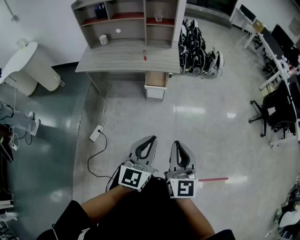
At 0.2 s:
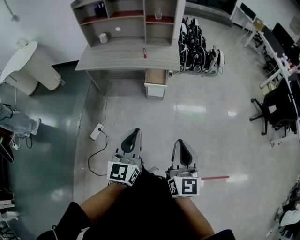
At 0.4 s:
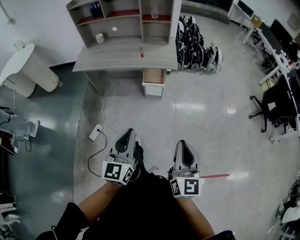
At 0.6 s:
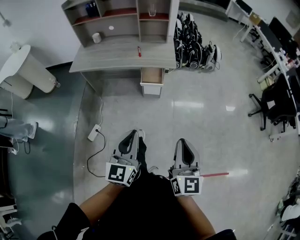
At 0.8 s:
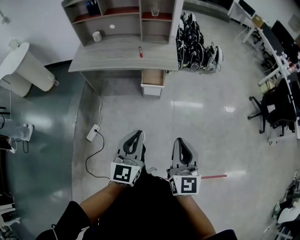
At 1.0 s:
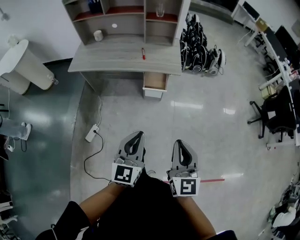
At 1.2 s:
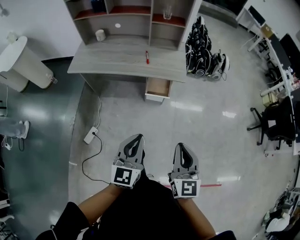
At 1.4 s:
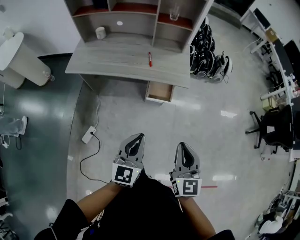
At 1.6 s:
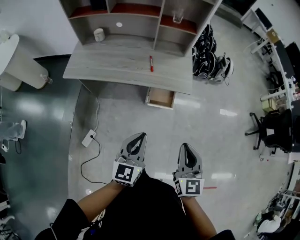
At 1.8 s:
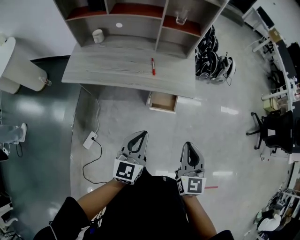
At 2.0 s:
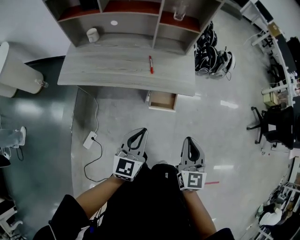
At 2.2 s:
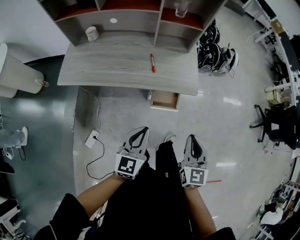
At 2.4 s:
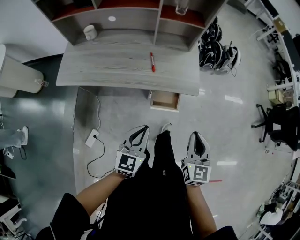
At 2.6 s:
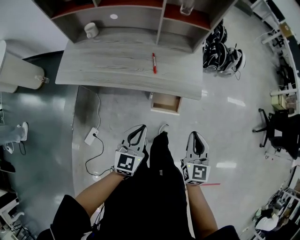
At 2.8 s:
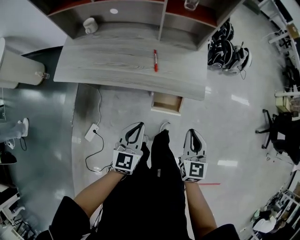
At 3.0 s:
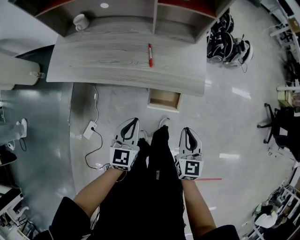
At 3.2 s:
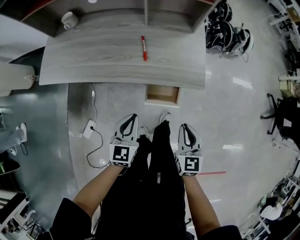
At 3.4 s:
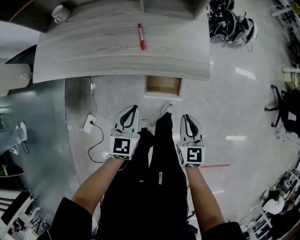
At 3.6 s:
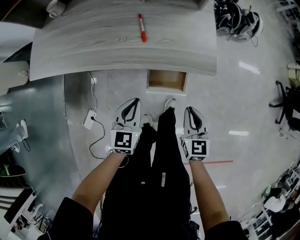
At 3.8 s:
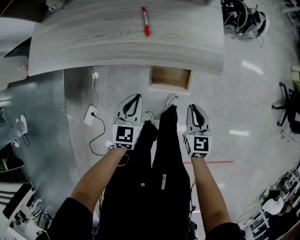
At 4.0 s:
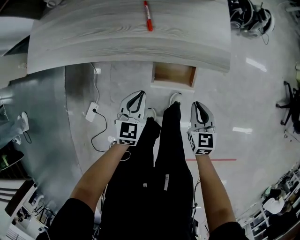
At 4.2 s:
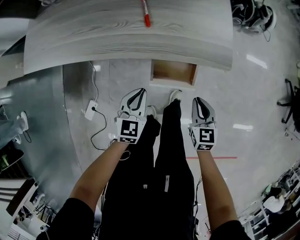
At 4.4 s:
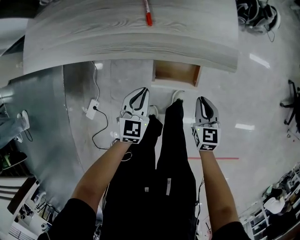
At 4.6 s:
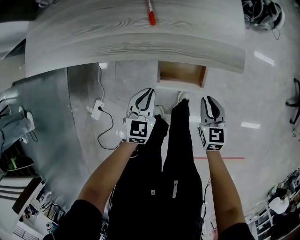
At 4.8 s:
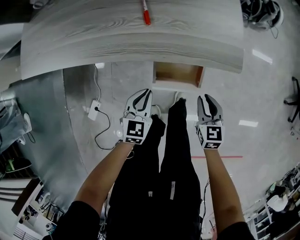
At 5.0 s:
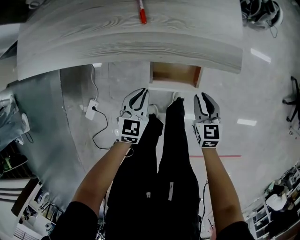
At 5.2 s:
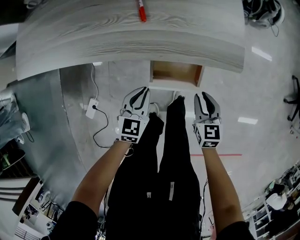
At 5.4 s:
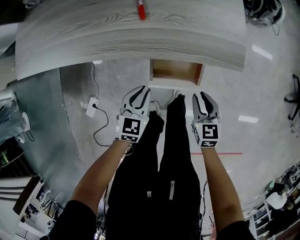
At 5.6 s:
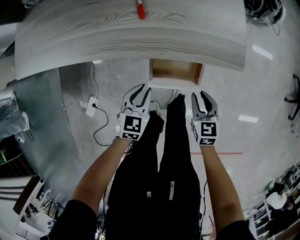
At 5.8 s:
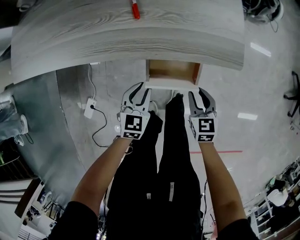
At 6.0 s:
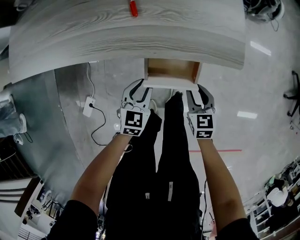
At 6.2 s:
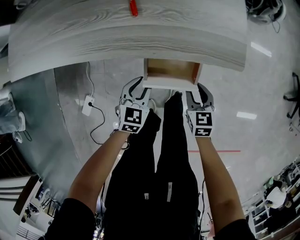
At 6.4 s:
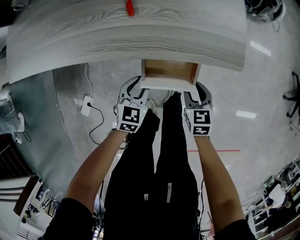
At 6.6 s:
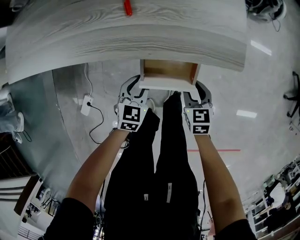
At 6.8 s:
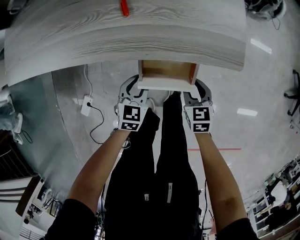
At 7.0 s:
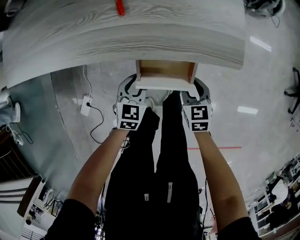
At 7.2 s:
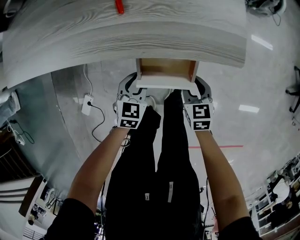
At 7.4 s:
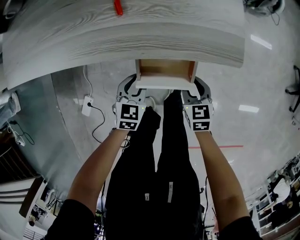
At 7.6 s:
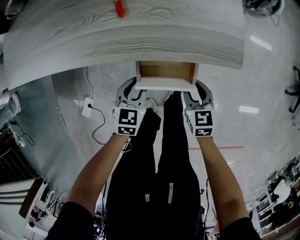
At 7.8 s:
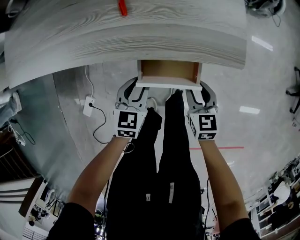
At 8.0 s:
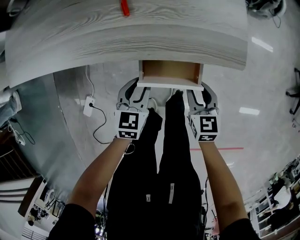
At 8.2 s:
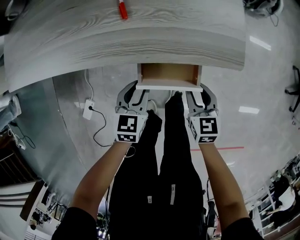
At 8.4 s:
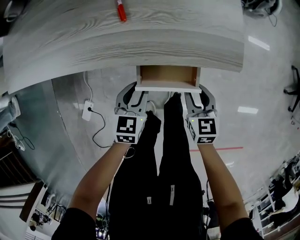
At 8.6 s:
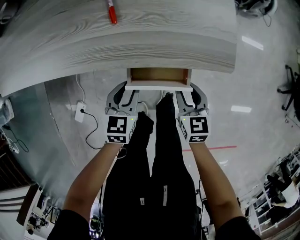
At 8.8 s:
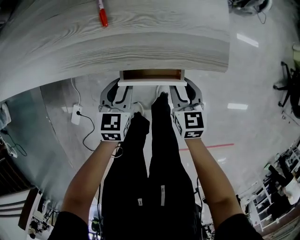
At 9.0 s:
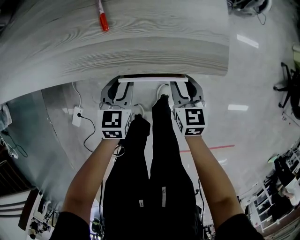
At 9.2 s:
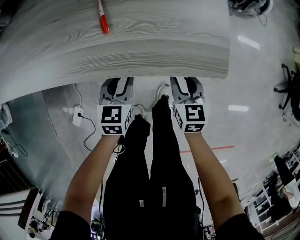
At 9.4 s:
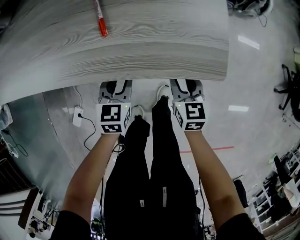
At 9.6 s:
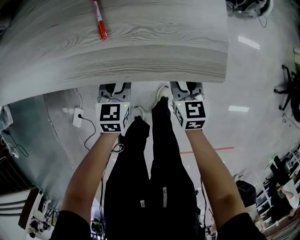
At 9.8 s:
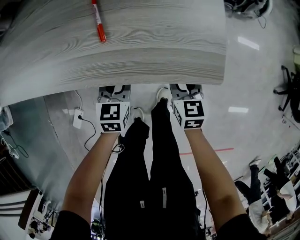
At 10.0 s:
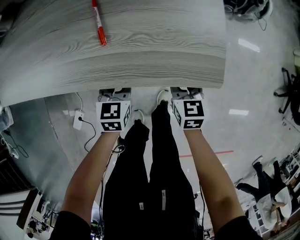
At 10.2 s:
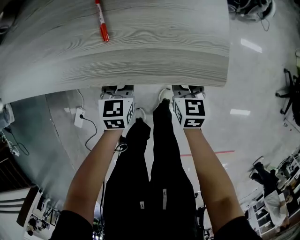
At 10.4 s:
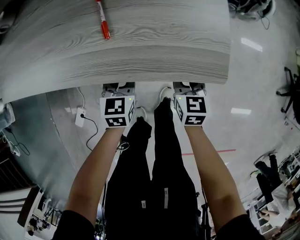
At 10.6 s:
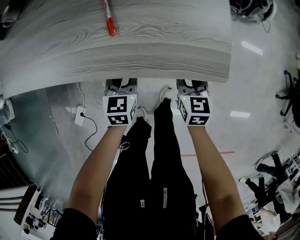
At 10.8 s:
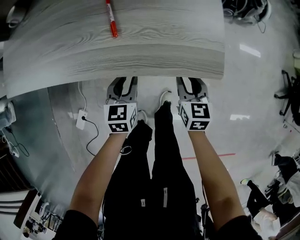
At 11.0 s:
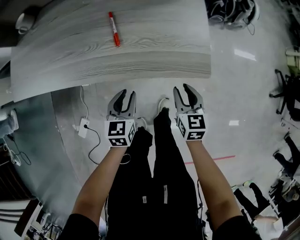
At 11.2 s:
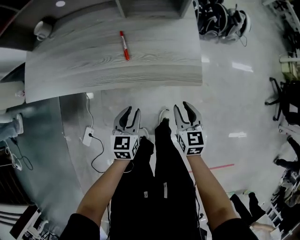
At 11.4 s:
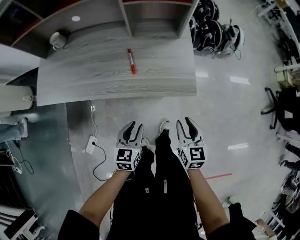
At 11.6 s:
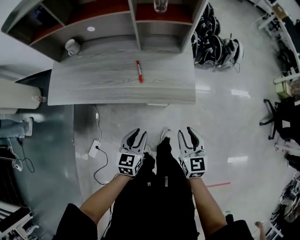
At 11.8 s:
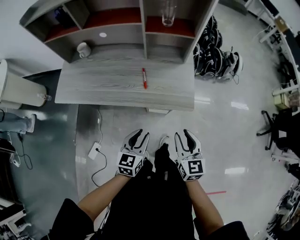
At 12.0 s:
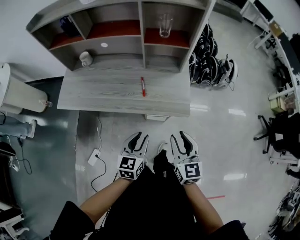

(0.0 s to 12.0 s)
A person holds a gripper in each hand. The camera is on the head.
0.0 s - 1.6 s: The left gripper heads forward and to the left, covering about 30 cm; the right gripper shifts roughly 30 cm forward.
1.6 s - 3.0 s: The right gripper is displaced downward and forward by some 25 cm. Meanwhile the left gripper shifts some 25 cm forward and downward.
3.0 s - 4.4 s: Both grippers move downward, roughly 25 cm.
4.4 s - 6.0 s: The grippers both shift downward by some 10 cm. The right gripper opens up, while the left gripper opens its fingers.
6.0 s - 7.6 s: The grippers make only small movements.
7.6 s - 9.0 s: Both grippers move forward, roughly 5 cm.
9.0 s - 10.4 s: Both grippers travel together forward, approximately 5 cm.
10.4 s - 12.0 s: The left gripper travels upward and backward by roughly 40 cm. Meanwhile the right gripper is displaced upward by approximately 40 cm, and rotates some 20 degrees.

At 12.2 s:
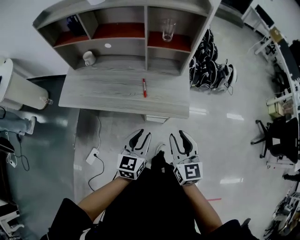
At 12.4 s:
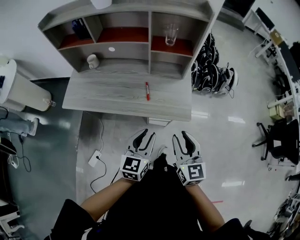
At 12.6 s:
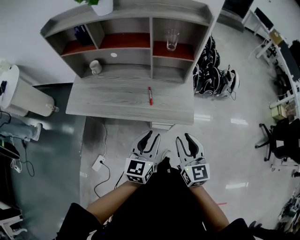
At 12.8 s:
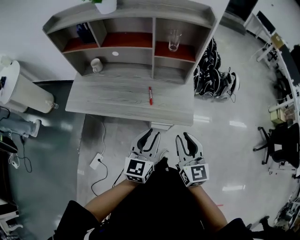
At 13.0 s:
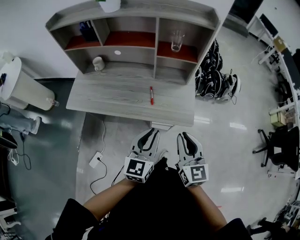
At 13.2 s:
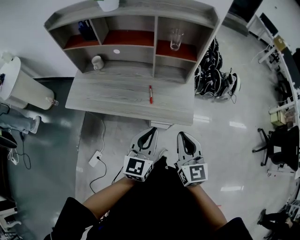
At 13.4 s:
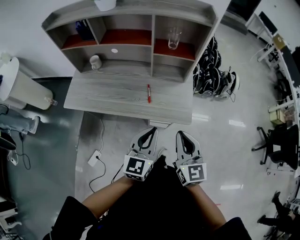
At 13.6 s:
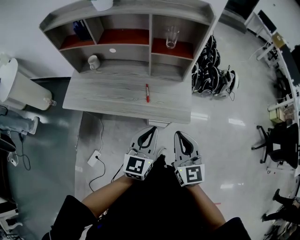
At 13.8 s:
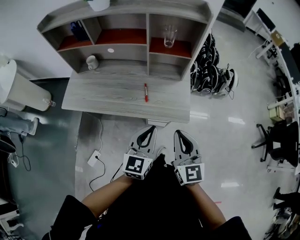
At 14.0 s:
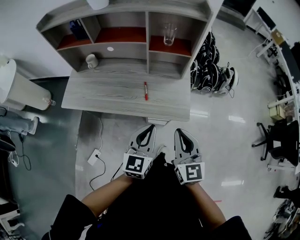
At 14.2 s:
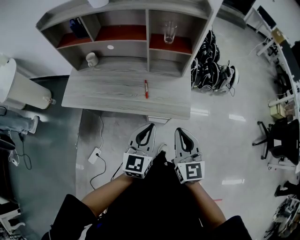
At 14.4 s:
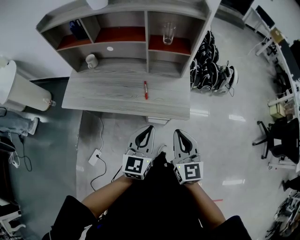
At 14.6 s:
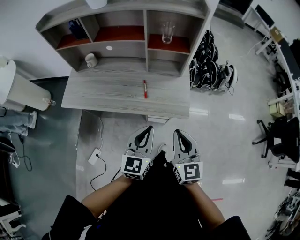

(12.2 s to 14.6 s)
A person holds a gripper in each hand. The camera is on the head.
12.2 s - 13.4 s: The left gripper is displaced upward by about 10 cm, and closes; the right gripper moves upward, roughly 5 cm, and closes up.
13.4 s - 14.6 s: There are only small adjustments of the grippers.

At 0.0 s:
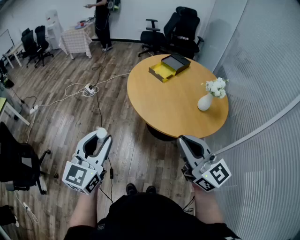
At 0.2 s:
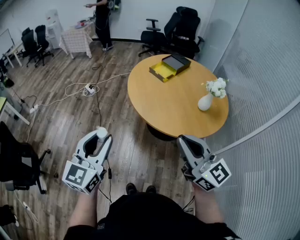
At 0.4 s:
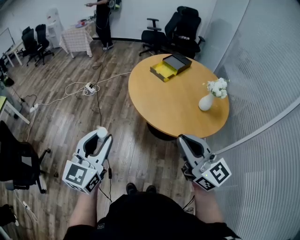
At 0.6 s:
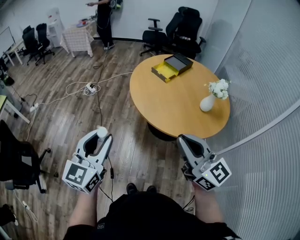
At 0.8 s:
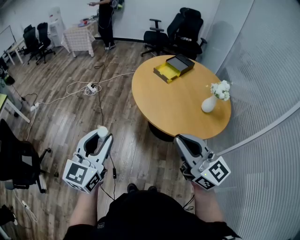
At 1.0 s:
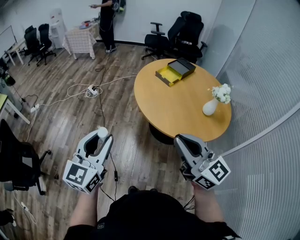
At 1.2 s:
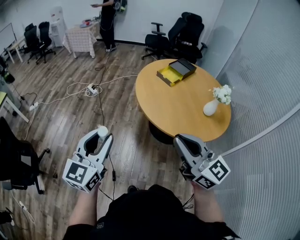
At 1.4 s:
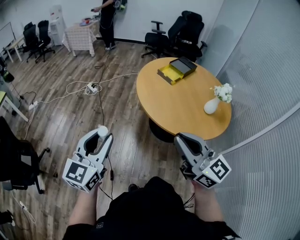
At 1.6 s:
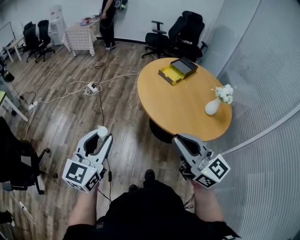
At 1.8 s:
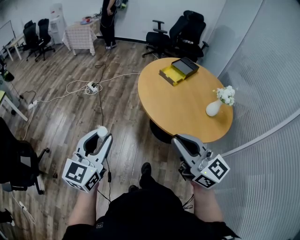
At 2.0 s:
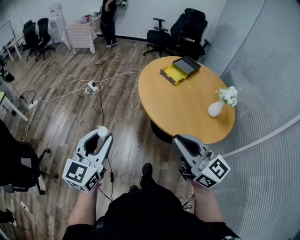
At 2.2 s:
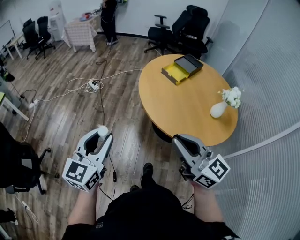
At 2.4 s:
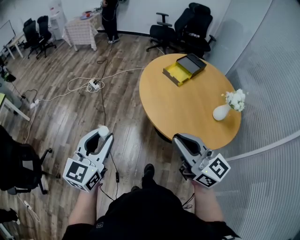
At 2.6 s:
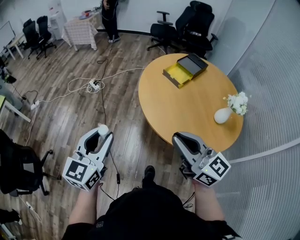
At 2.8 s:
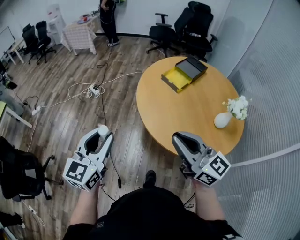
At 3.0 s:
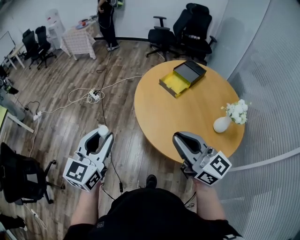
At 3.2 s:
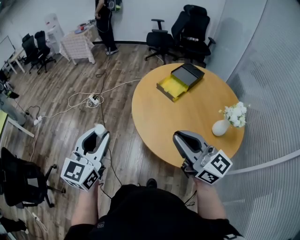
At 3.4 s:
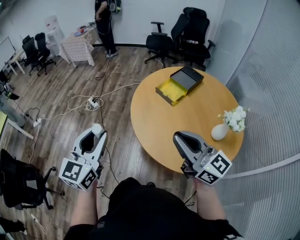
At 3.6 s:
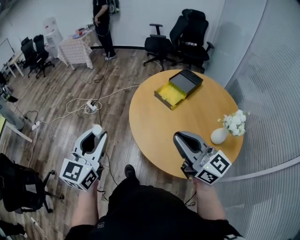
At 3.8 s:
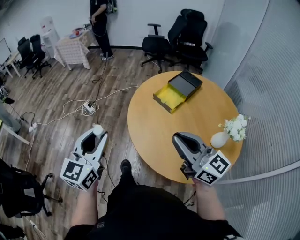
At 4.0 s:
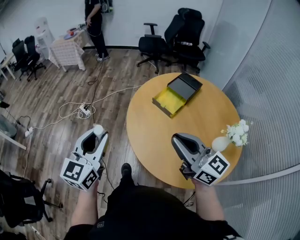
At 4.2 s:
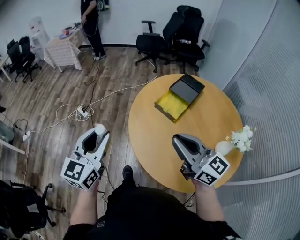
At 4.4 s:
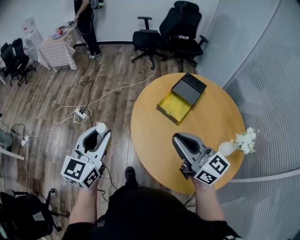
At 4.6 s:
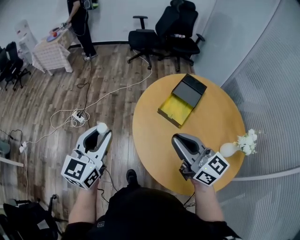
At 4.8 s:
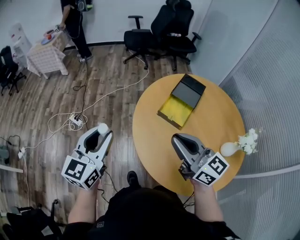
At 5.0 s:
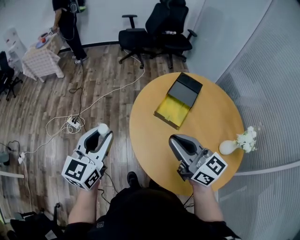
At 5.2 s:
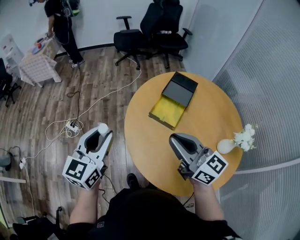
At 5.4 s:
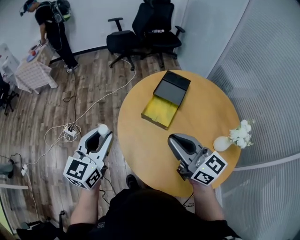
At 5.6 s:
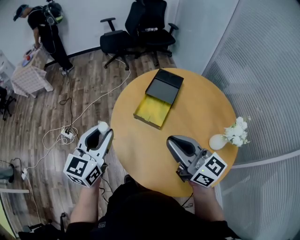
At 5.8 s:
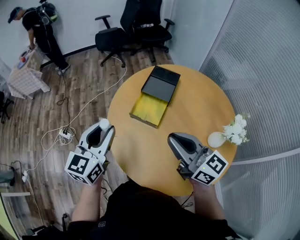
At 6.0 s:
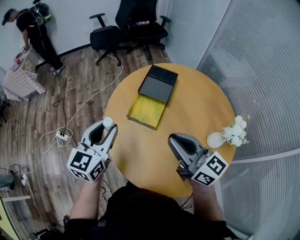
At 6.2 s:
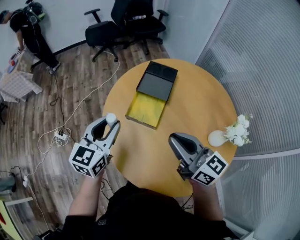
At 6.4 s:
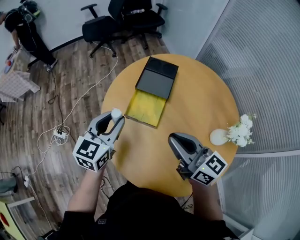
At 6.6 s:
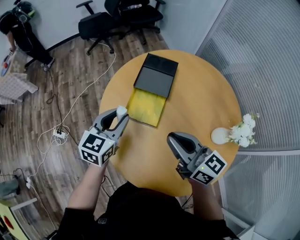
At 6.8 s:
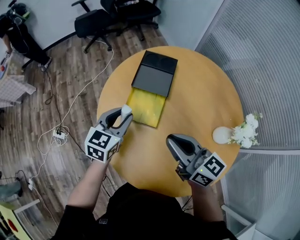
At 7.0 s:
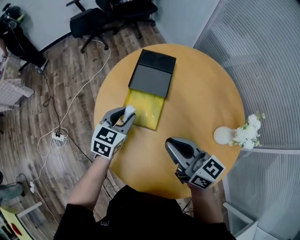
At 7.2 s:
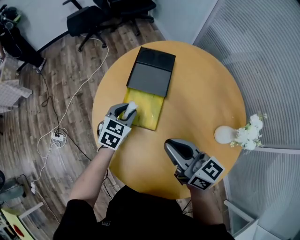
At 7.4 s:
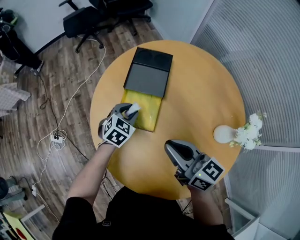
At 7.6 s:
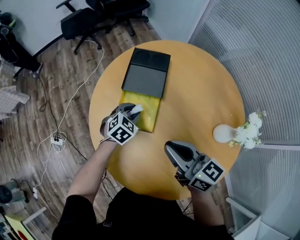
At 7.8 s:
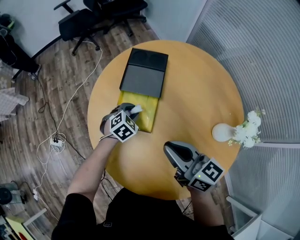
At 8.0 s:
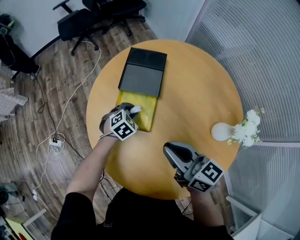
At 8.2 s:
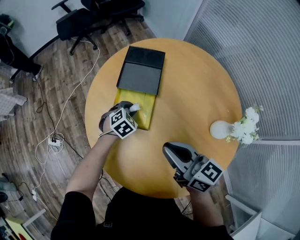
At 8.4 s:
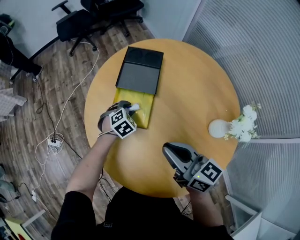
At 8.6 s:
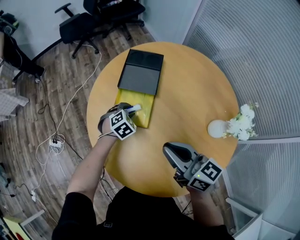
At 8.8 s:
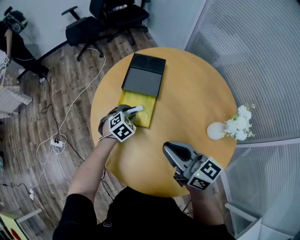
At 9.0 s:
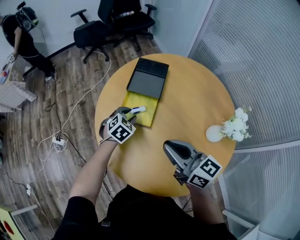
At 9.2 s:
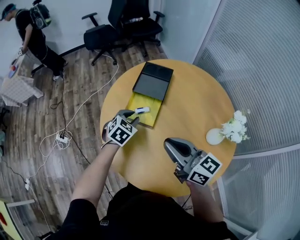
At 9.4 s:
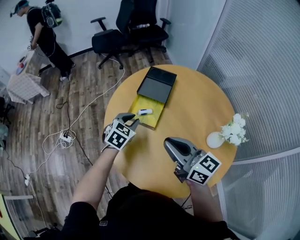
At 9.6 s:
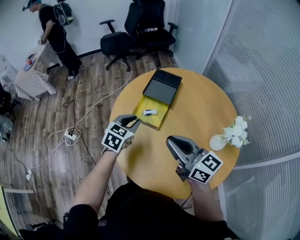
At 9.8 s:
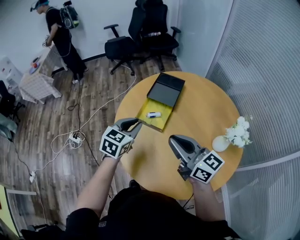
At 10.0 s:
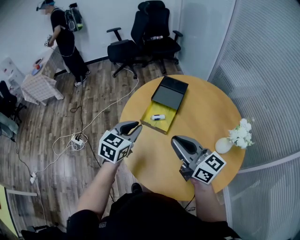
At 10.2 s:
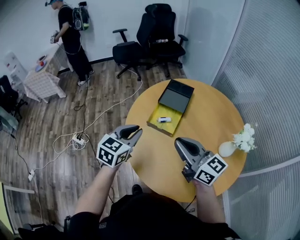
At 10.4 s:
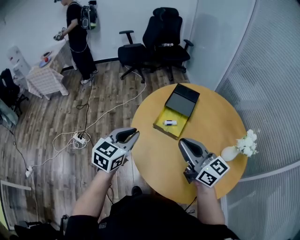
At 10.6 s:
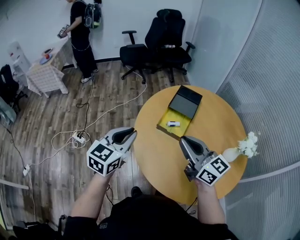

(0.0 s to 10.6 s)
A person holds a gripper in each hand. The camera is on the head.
0.0 s - 1.6 s: The two grippers go some 10 cm to the left.
1.6 s - 3.0 s: Both grippers travel together forward and to the right, approximately 25 cm.
3.0 s - 4.6 s: Both grippers travel together forward, approximately 30 cm.
4.6 s - 6.0 s: The right gripper is displaced to the right by about 15 cm, while the left gripper goes approximately 25 cm to the right and forward.
6.0 s - 7.6 s: The left gripper moves downward, forward and to the right, about 35 cm, and angles its fingers downward, by roughly 40 degrees. Meanwhile the right gripper is displaced downward and forward by some 15 cm.
7.6 s - 9.0 s: Both grippers travel together backward, some 5 cm.
9.0 s - 10.6 s: The right gripper goes approximately 15 cm to the left and upward, while the left gripper is displaced upward, to the left and backward by approximately 35 cm, and tips its fingers upward by roughly 40 degrees.
